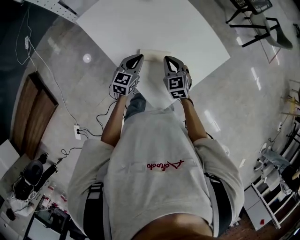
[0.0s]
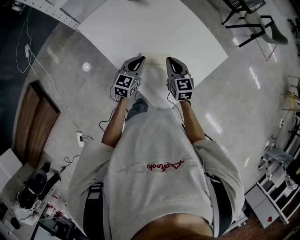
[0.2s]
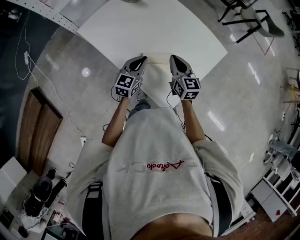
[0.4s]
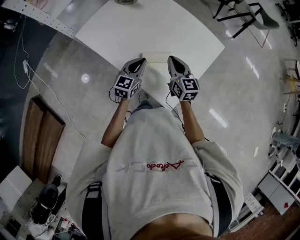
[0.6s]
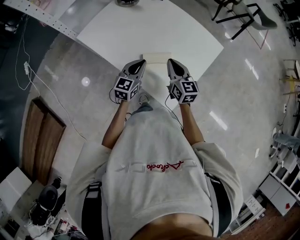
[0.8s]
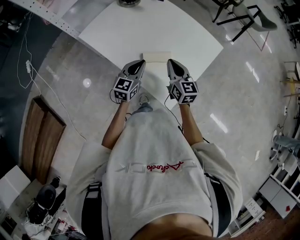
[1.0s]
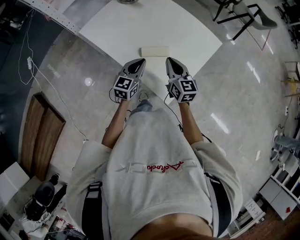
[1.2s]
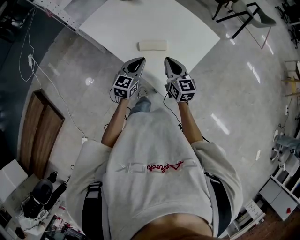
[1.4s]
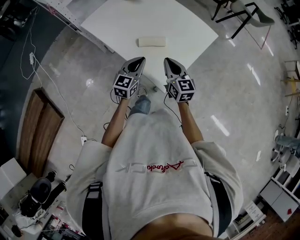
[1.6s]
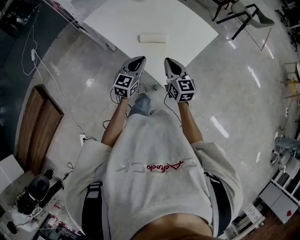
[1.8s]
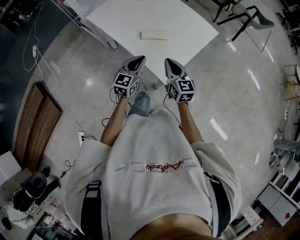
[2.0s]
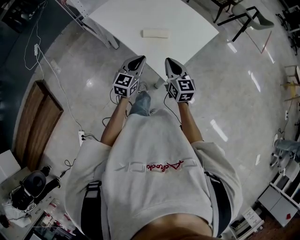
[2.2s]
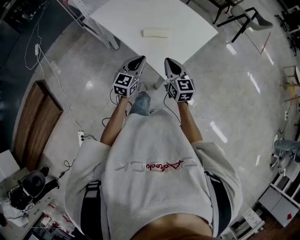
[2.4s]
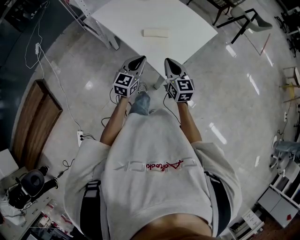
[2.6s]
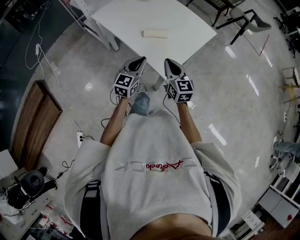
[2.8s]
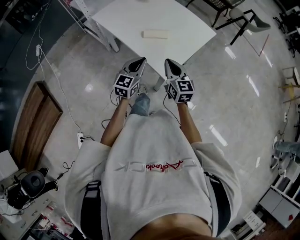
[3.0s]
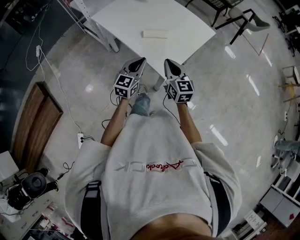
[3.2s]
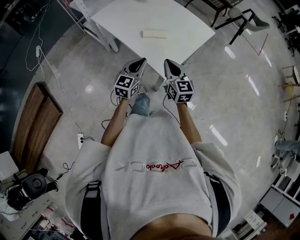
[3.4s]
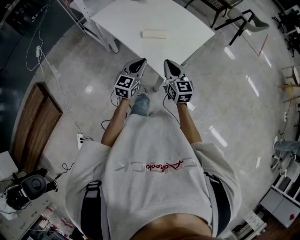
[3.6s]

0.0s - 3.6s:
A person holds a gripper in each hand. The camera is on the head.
0.0s - 1.8s: Both grippers move backward and upward, some 15 cm. The right gripper swivels some 30 degrees.
1.8s - 3.6s: Both grippers travel together backward, roughly 10 cm.

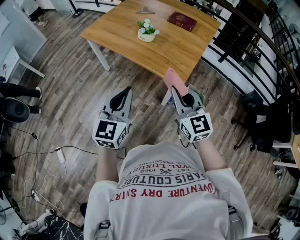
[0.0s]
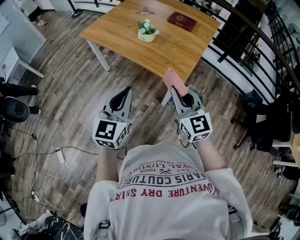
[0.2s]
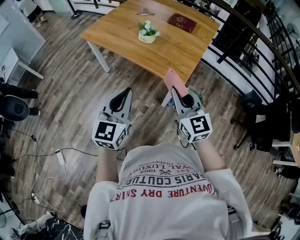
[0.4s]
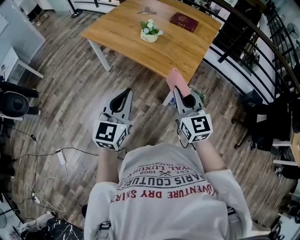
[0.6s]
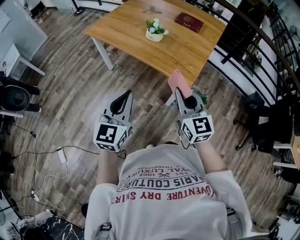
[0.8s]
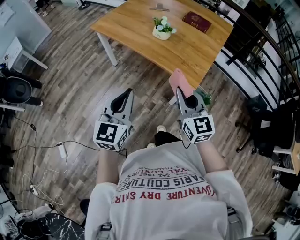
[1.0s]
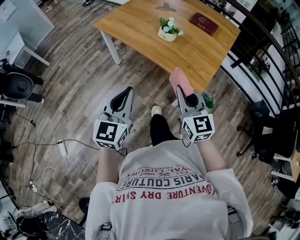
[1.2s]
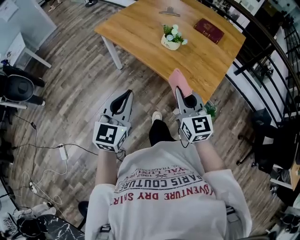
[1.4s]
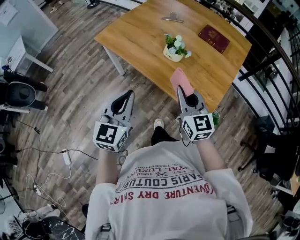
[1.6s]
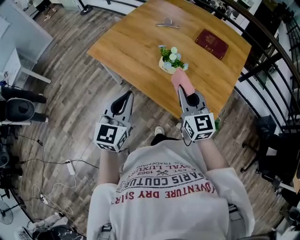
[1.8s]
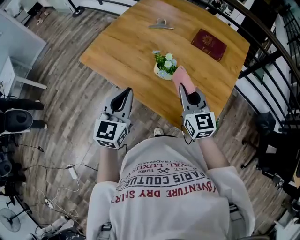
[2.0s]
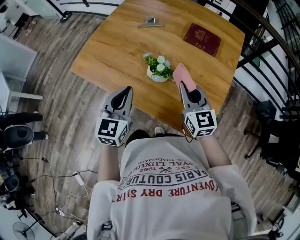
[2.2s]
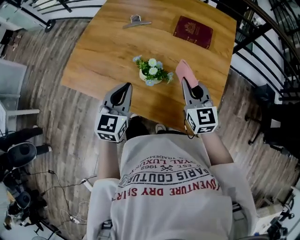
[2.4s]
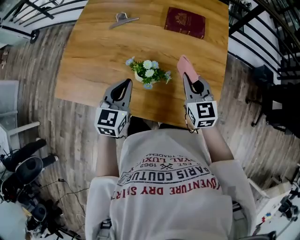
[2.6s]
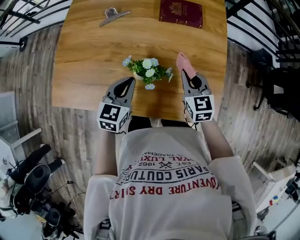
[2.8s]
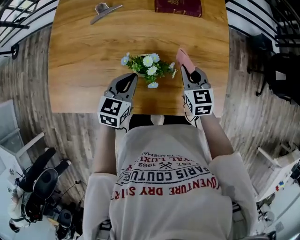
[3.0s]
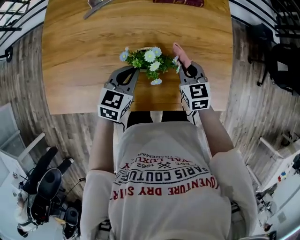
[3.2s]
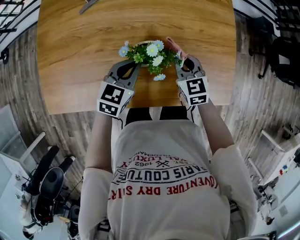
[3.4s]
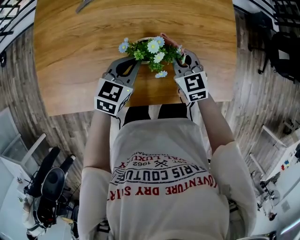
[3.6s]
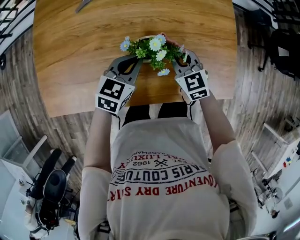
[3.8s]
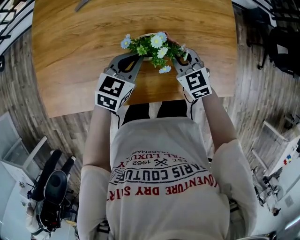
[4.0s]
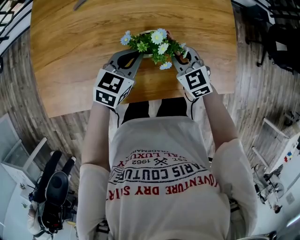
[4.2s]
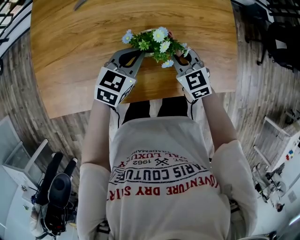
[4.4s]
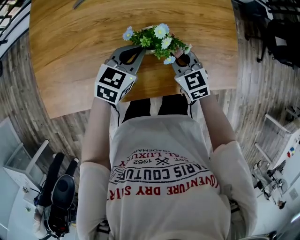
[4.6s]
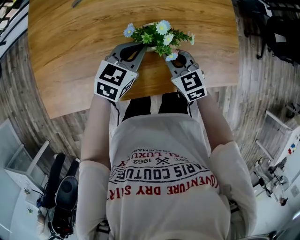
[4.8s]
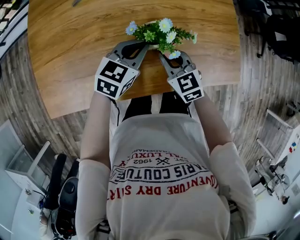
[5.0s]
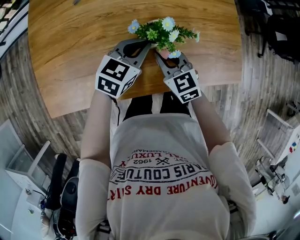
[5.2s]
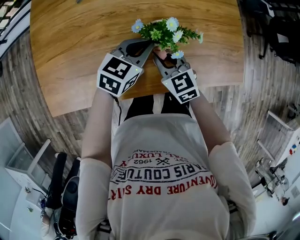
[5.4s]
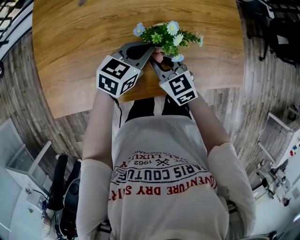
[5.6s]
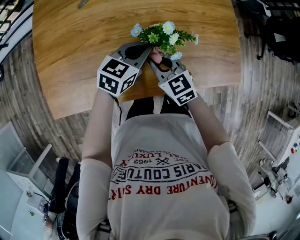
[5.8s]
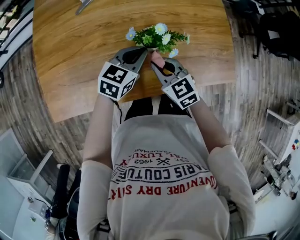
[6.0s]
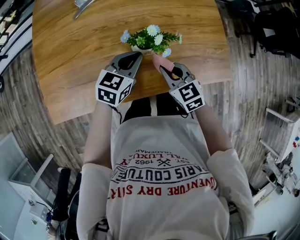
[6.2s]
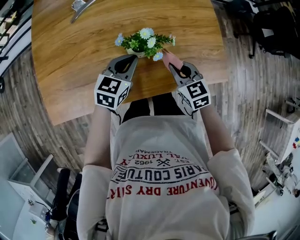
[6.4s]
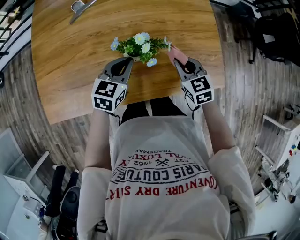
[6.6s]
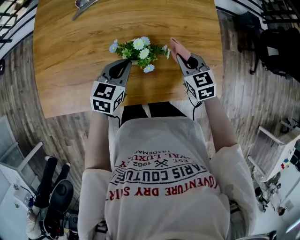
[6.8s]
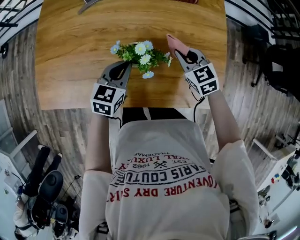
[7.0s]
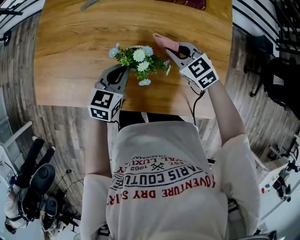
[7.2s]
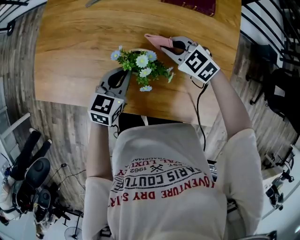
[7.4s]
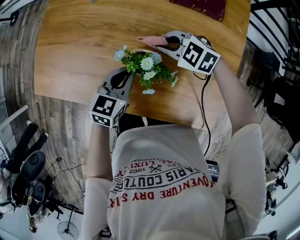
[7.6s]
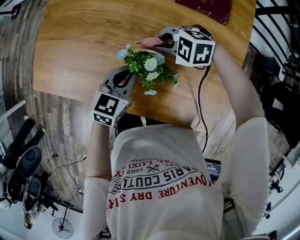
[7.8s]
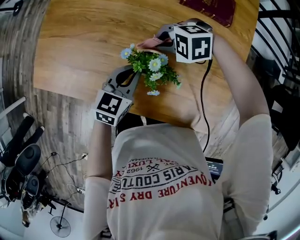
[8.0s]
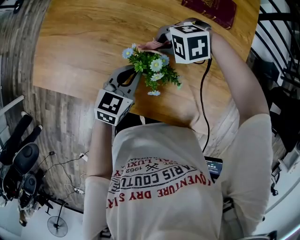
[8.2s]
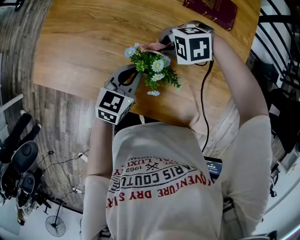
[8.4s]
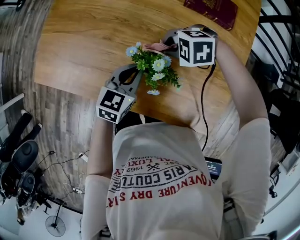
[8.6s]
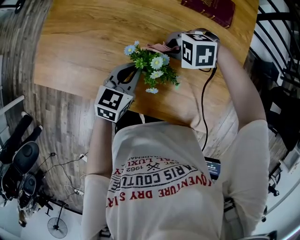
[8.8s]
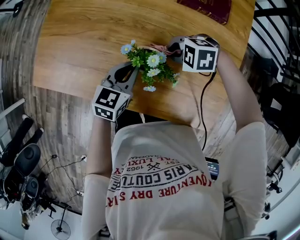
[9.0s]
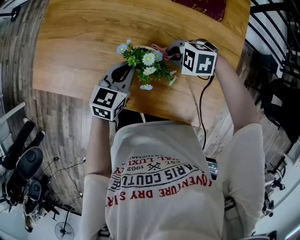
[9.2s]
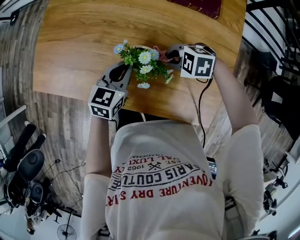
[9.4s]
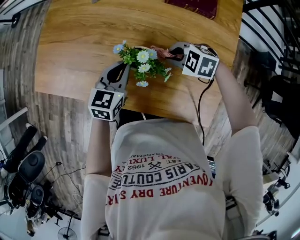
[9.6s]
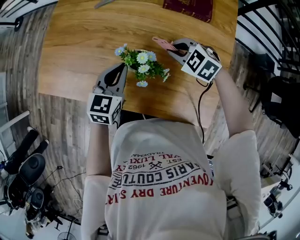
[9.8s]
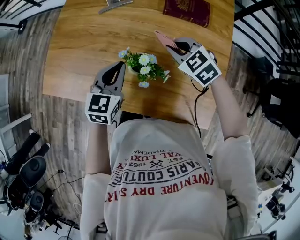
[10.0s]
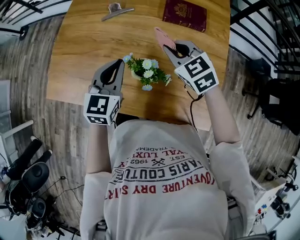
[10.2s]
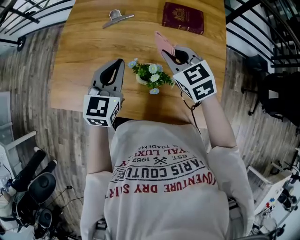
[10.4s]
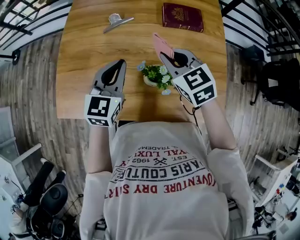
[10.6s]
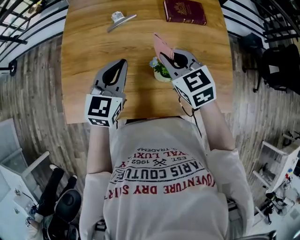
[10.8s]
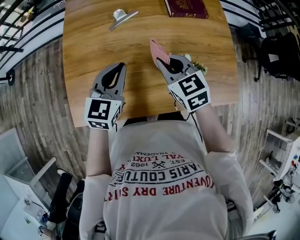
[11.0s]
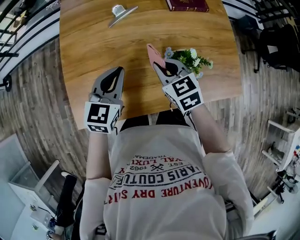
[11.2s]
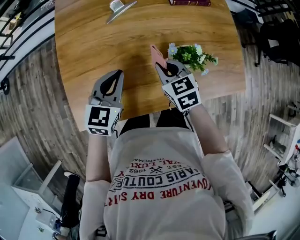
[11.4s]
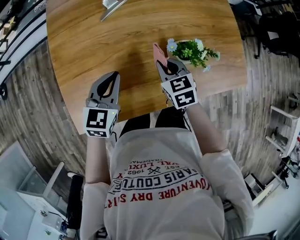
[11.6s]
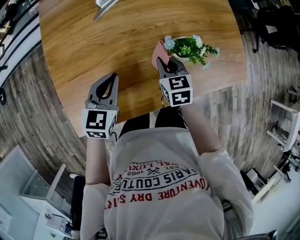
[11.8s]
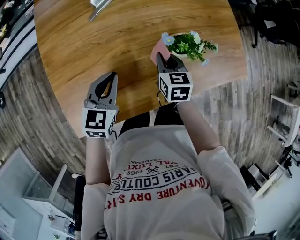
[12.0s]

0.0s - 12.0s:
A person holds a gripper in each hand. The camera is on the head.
0.0s - 1.6s: The left gripper shifts about 25 cm forward and to the left. The right gripper moves forward, roughly 25 cm.
1.6s - 3.0s: The left gripper moves about 40 cm, and rotates roughly 50 degrees, while the right gripper moves roughly 30 cm, and changes its angle by roughly 40 degrees.
3.0s - 4.4s: The right gripper shifts approximately 10 cm to the left, backward and downward.
4.4s - 6.0s: The right gripper is displaced backward and to the left by approximately 10 cm.
6.0s - 7.6s: The right gripper ends up about 15 cm from where it was, and changes its angle by some 60 degrees, while the left gripper swivels roughly 30 degrees.
7.6s - 9.0s: The right gripper changes place by some 5 cm, and rotates roughly 30 degrees.
9.0s - 10.4s: The grippers both shift upward by approximately 15 cm. The right gripper swivels about 70 degrees. Meanwhile the left gripper swivels roughly 20 degrees.
10.4s - 12.0s: The right gripper moves downward, some 15 cm, and changes its angle by some 60 degrees, while the left gripper ends up approximately 20 cm from where it was, and changes its angle by about 30 degrees.

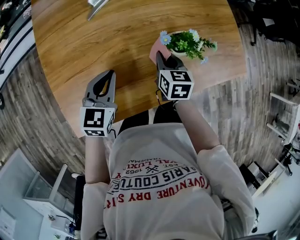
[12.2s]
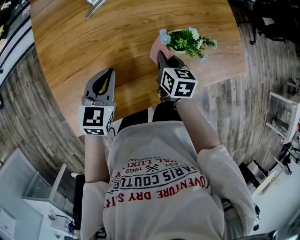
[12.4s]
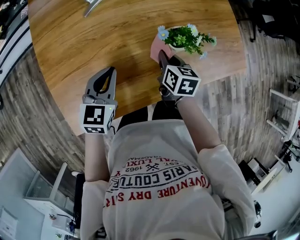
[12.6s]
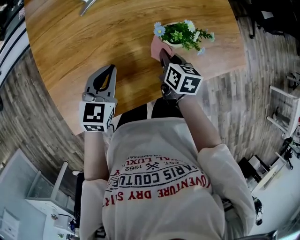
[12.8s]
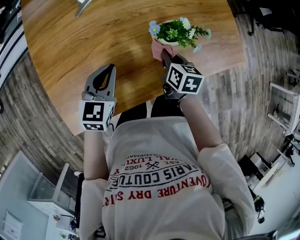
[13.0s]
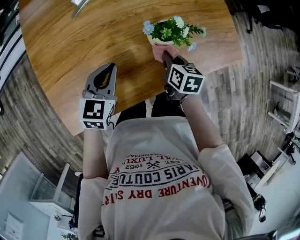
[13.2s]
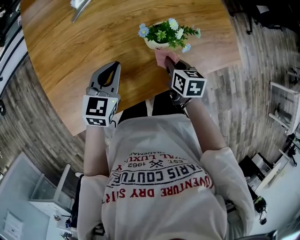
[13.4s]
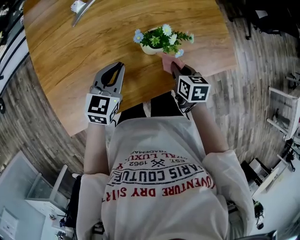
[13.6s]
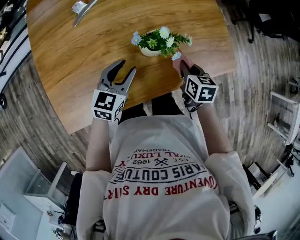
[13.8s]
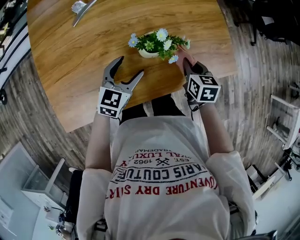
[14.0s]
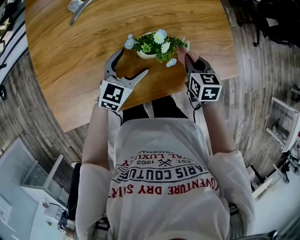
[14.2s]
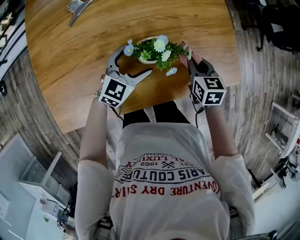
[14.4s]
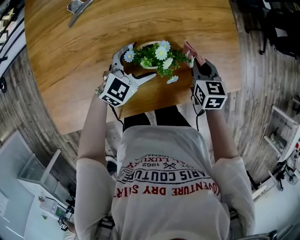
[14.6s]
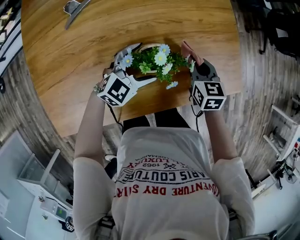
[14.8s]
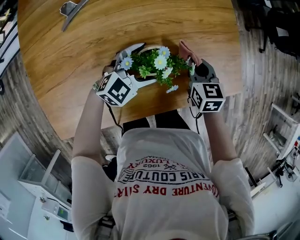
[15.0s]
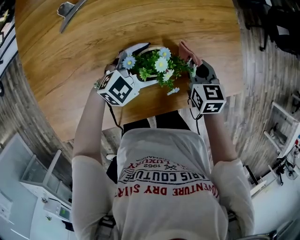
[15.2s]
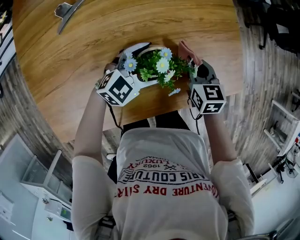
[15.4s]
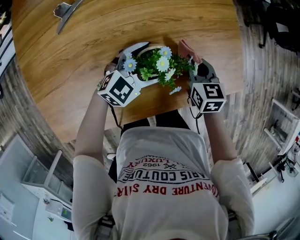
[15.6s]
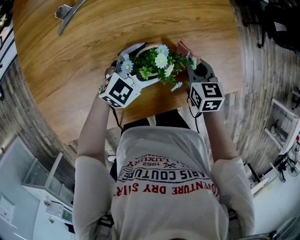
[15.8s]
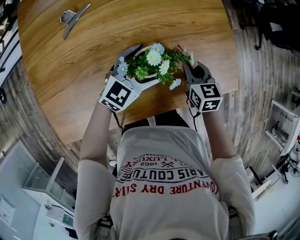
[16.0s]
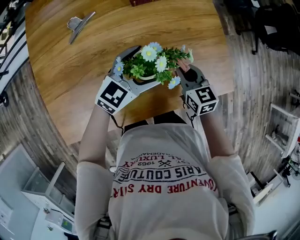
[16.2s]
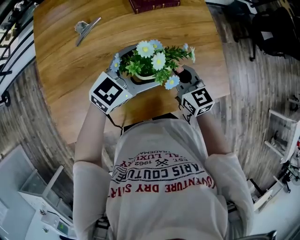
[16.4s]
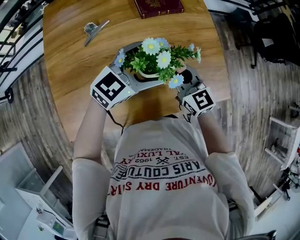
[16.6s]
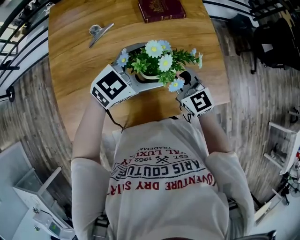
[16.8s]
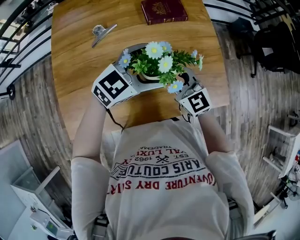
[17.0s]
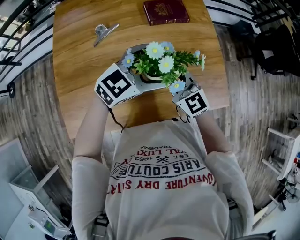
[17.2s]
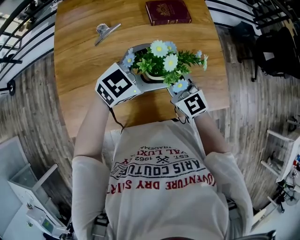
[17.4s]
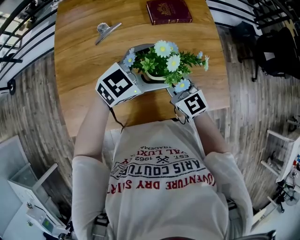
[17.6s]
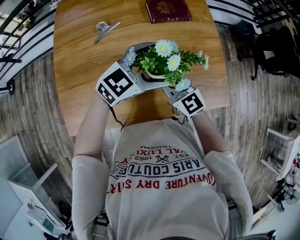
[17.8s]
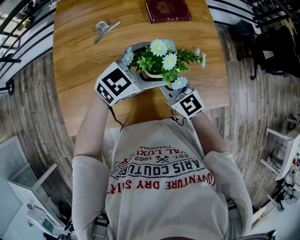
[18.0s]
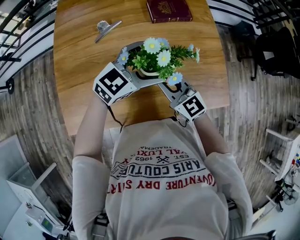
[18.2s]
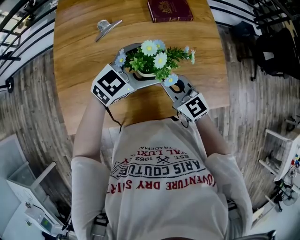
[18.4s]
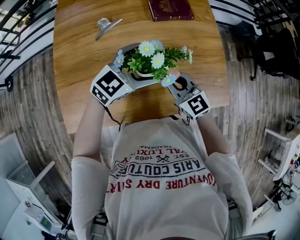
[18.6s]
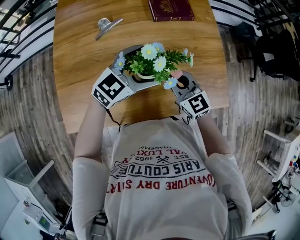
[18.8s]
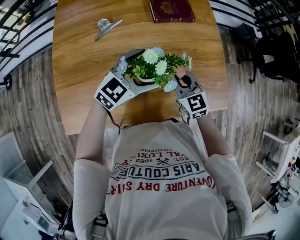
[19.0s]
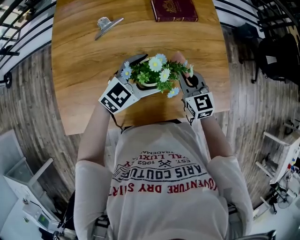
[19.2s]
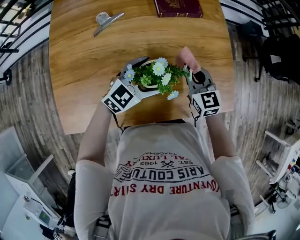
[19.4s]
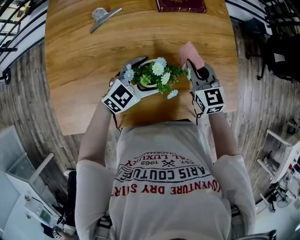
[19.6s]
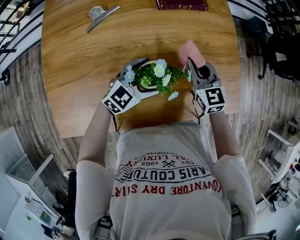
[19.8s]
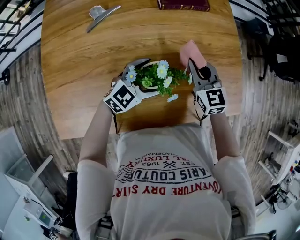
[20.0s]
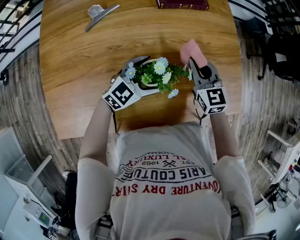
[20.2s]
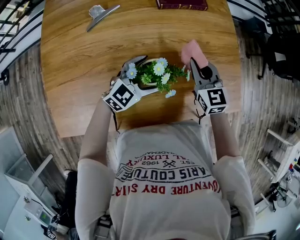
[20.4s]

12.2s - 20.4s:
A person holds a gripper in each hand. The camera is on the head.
12.2s - 13.8s: Both grippers move to the right, some 15 cm.
13.8s - 15.4s: The left gripper goes roughly 15 cm forward, to the right and downward, swivels some 40 degrees, and opens its fingers, while the right gripper moves forward, roughly 10 cm.
15.4s - 17.2s: The left gripper goes roughly 20 cm upward. The right gripper goes about 20 cm upward and to the left, and tips its fingers upward by approximately 30 degrees.
17.2s - 18.8s: The left gripper moves approximately 5 cm; the right gripper ends up about 5 cm from where it was.
18.8s - 20.4s: The left gripper travels downward by roughly 15 cm. The right gripper shifts about 15 cm forward, downward and to the right.
